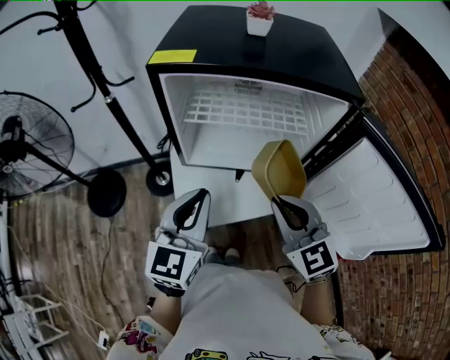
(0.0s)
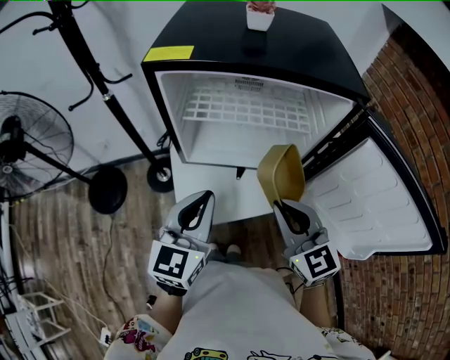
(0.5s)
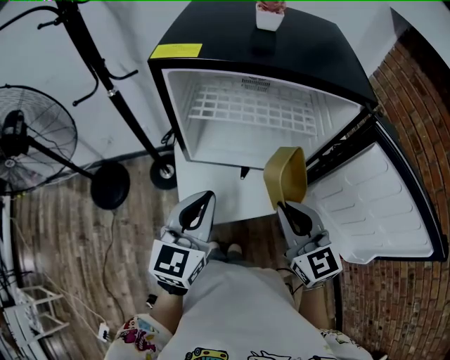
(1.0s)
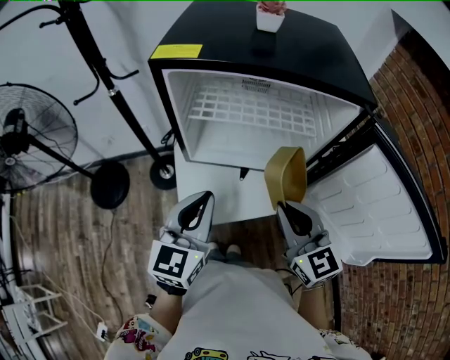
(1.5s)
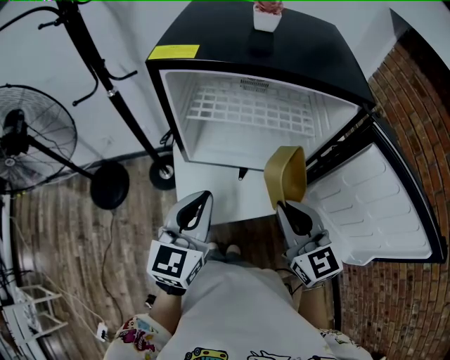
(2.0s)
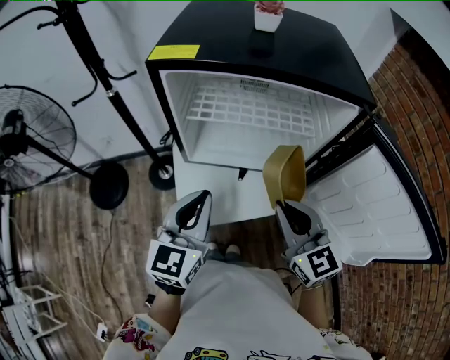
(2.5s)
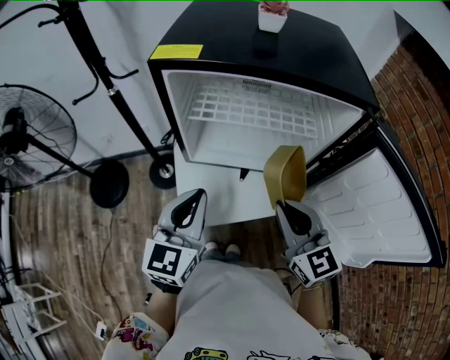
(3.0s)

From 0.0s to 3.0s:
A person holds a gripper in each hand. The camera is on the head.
From 0.0s to 3.0s: The grippers make only small movements.

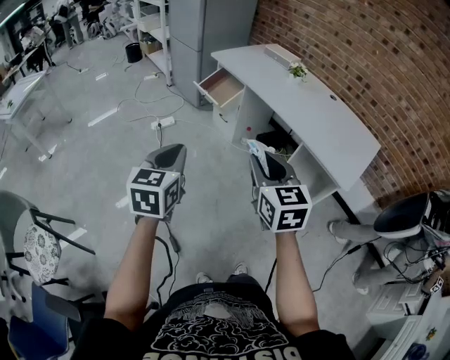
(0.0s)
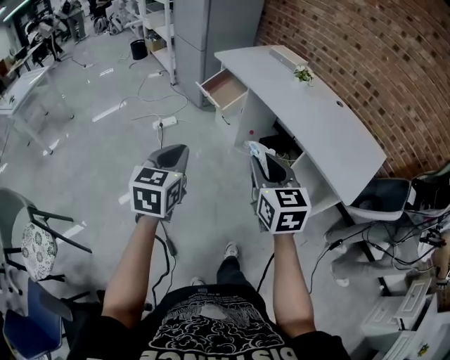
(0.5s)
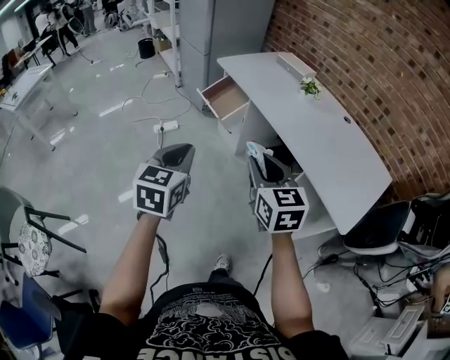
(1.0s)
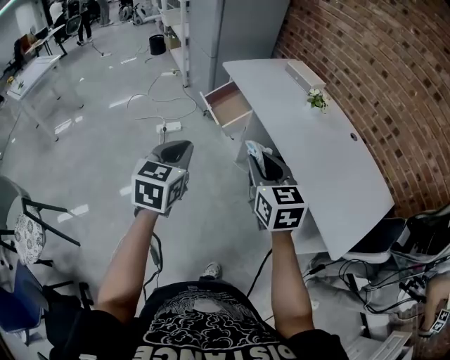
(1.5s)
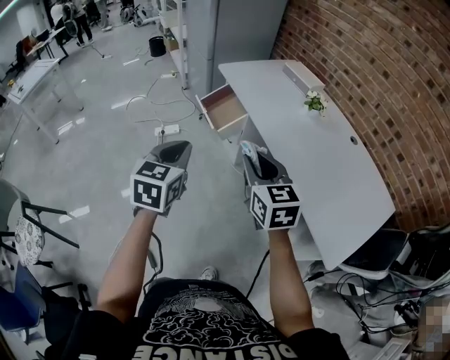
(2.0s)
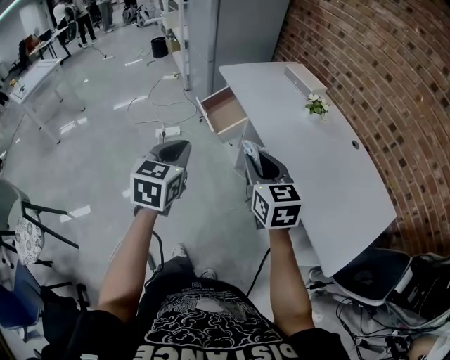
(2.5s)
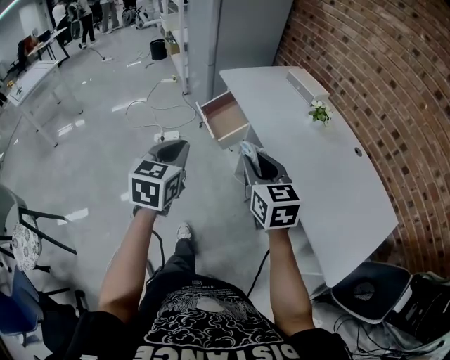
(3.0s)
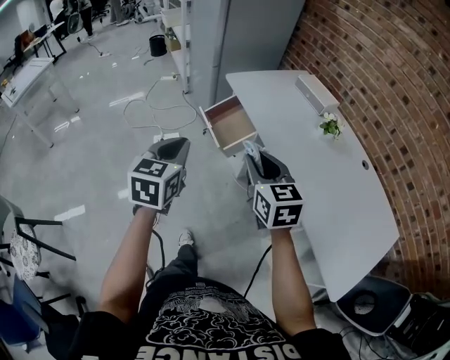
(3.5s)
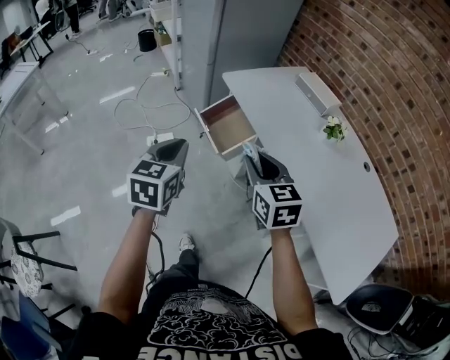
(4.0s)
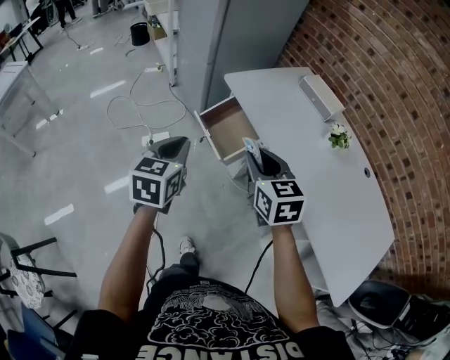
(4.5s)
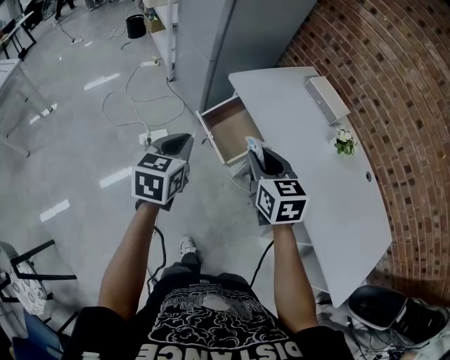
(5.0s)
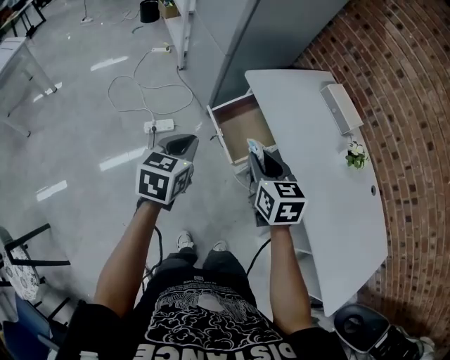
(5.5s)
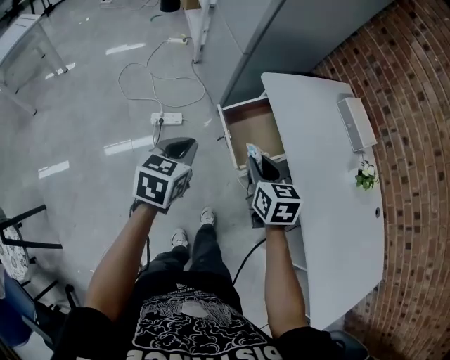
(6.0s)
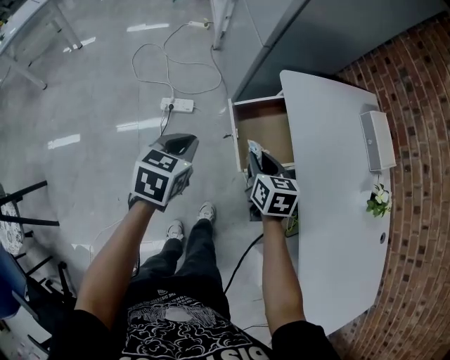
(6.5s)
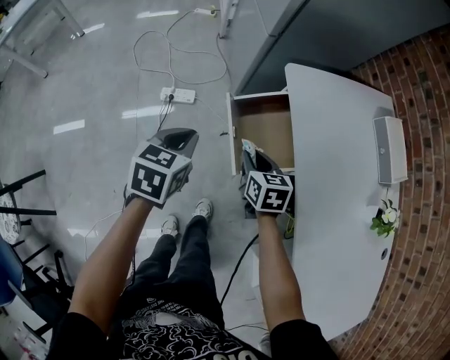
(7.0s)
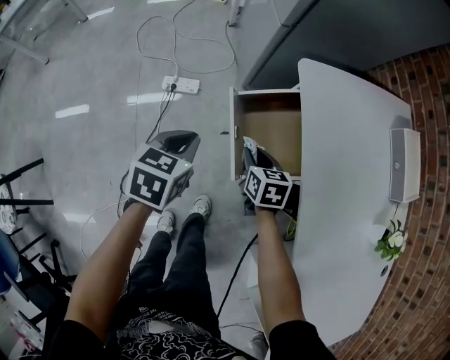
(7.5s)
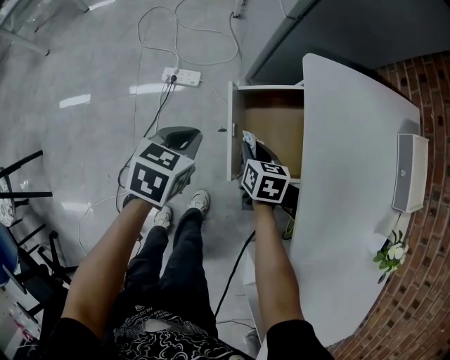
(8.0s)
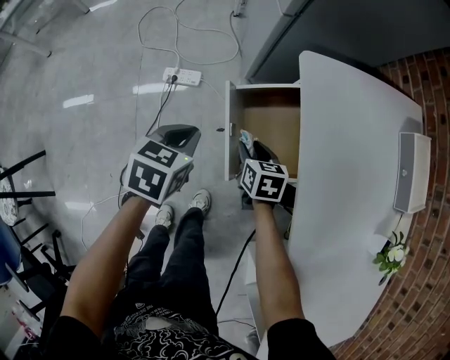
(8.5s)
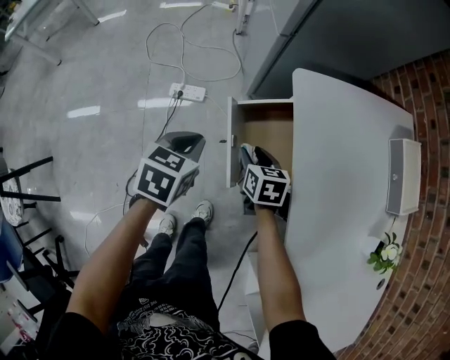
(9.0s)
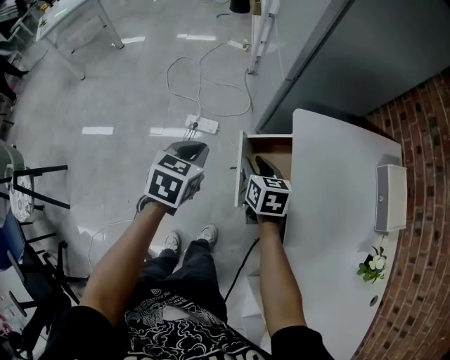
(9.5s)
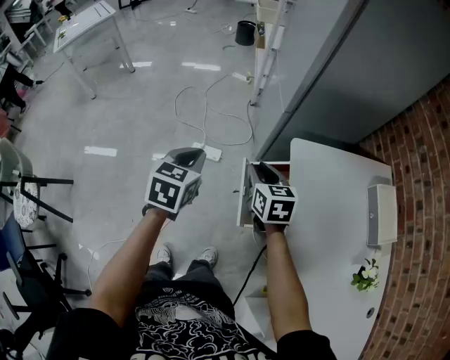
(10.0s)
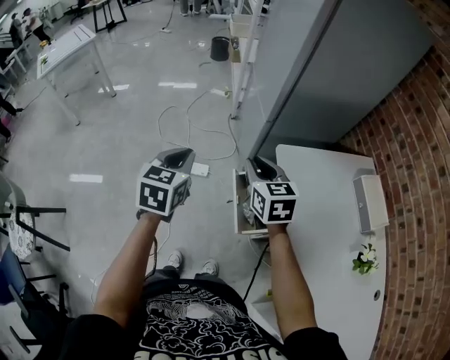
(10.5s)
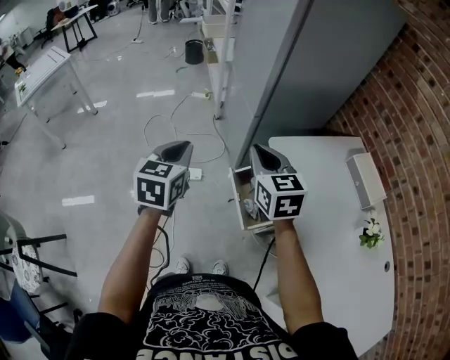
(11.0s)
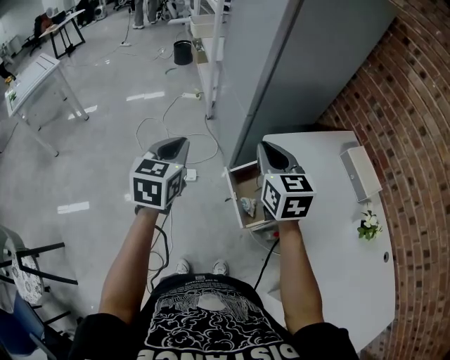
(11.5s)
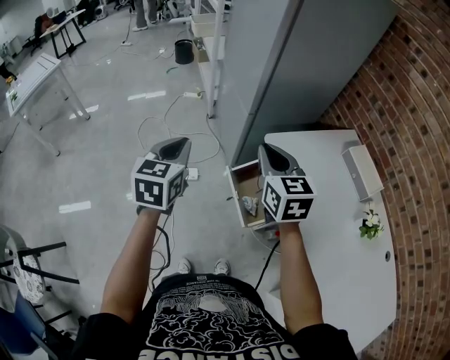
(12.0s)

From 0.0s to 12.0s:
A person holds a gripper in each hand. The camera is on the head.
From 0.0s to 2.0s: The two grippers go some 30 cm forward and to the right.
From 2.0s to 4.0s: Both grippers move forward, some 20 cm.
From 4.0s to 6.0s: The two grippers go some 20 cm forward, downward and to the left.
From 6.0s to 8.0s: The grippers both shift downward and forward by about 25 cm. The right gripper turns by approximately 20 degrees.
From 8.0s to 10.0s: The two grippers go roughly 25 cm upward. The right gripper rotates about 20 degrees, while the left gripper changes its angle by about 20 degrees.
From 10.0s to 12.0s: The left gripper shifts roughly 10 cm upward; the right gripper shifts about 15 cm upward, rotates some 20 degrees, and closes.

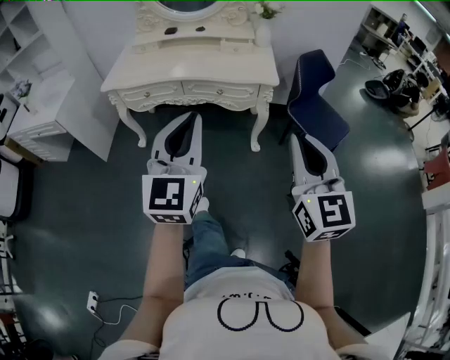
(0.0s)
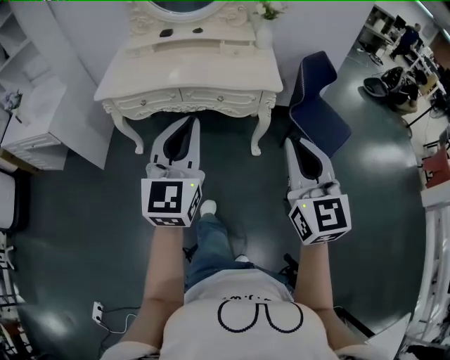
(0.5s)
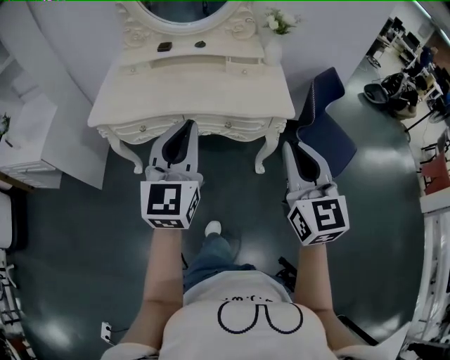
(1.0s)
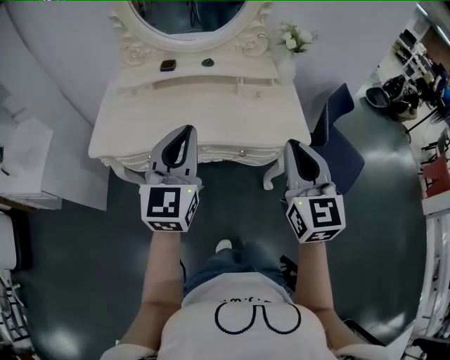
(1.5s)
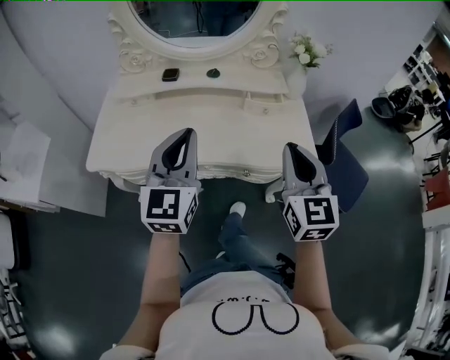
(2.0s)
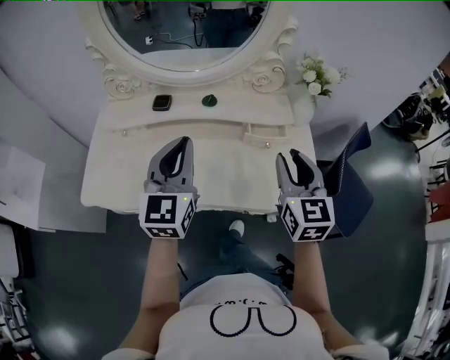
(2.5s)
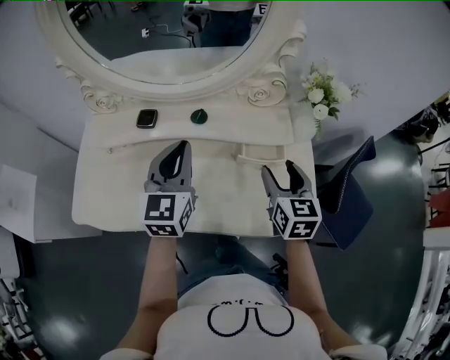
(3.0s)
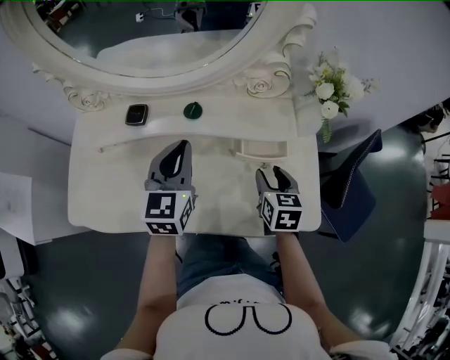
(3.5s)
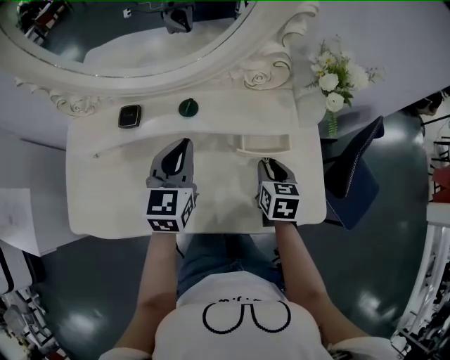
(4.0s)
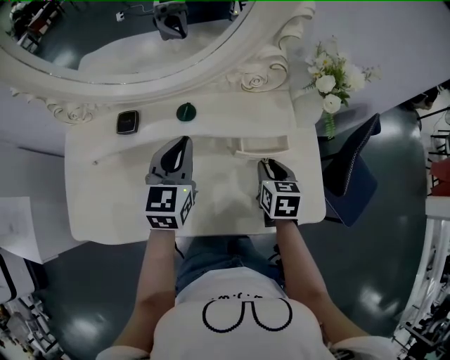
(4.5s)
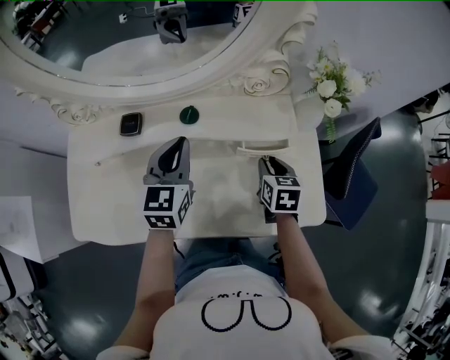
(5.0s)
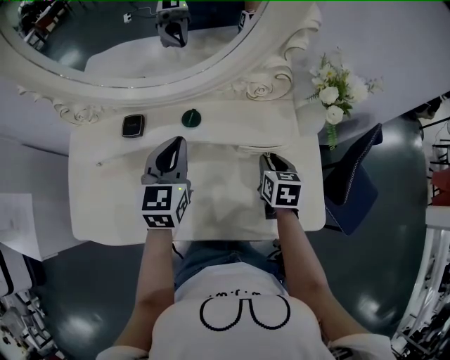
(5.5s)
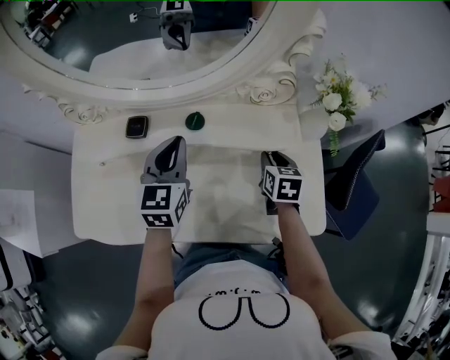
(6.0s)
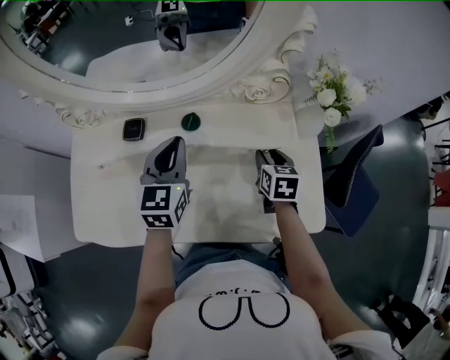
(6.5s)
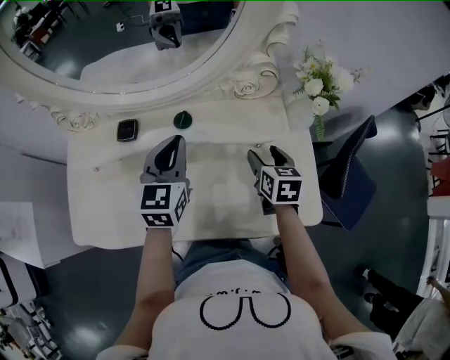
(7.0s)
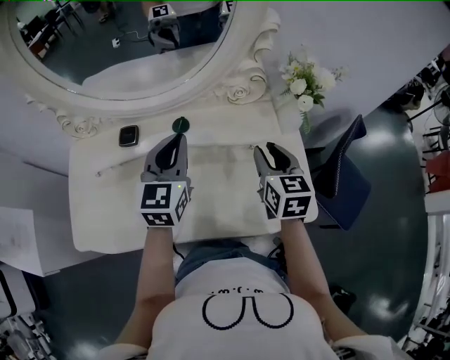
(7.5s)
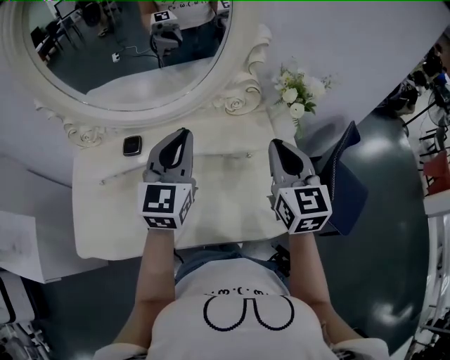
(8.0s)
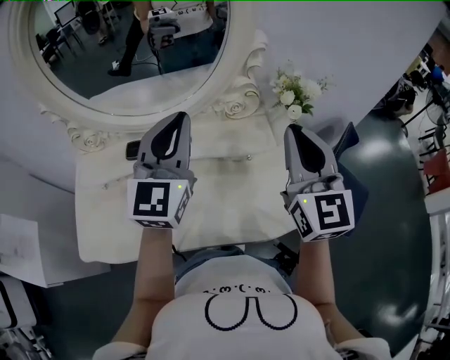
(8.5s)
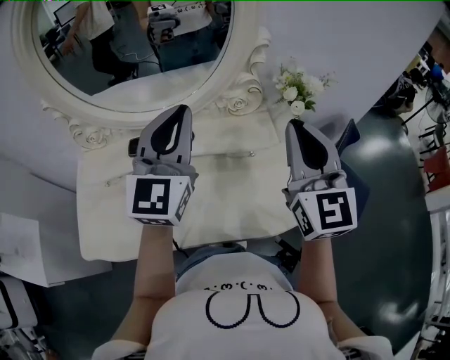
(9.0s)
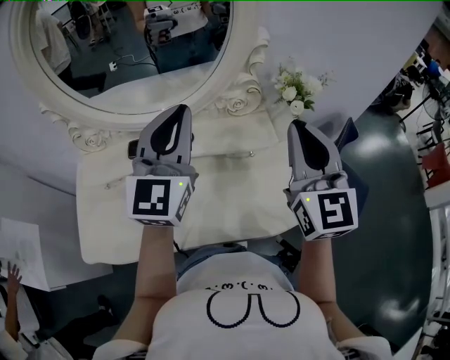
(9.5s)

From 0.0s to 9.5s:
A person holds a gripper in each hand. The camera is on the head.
From 0.0s to 2.0s: Both grippers are carried forward, roughly 50 cm.
From 2.0s to 4.0s: Both grippers travel together forward and downward, some 35 cm. The left gripper turns by about 20 degrees. The right gripper angles its fingers downward, by roughly 40 degrees, and opens its fingers.
From 4.0s to 5.5s: The grippers move only a little.
From 5.5s to 7.5s: The right gripper heads upward, covering roughly 15 cm, rotates about 20 degrees, and opens, then closes again; the left gripper shifts approximately 5 cm upward.
From 7.5s to 9.5s: The two grippers go approximately 20 cm upward. The right gripper changes its angle by about 30 degrees, and closes up. The left gripper swivels approximately 20 degrees.

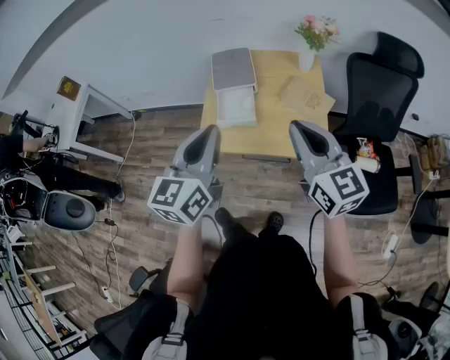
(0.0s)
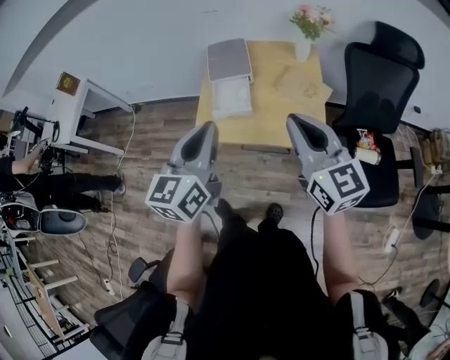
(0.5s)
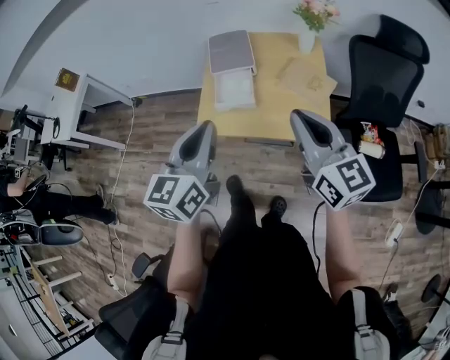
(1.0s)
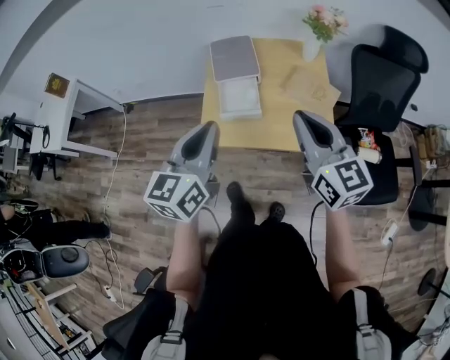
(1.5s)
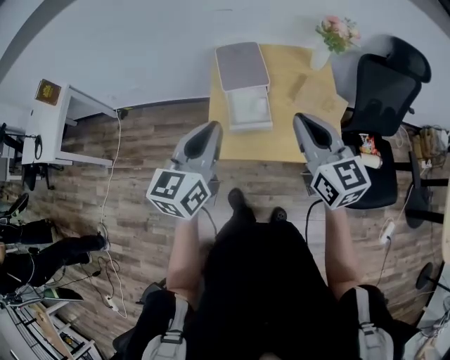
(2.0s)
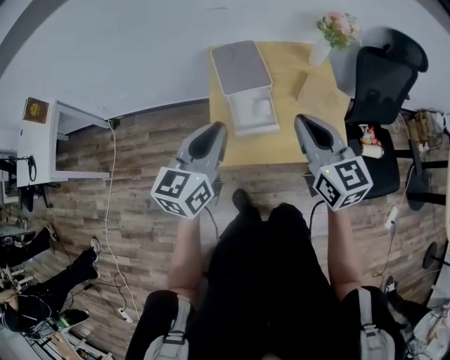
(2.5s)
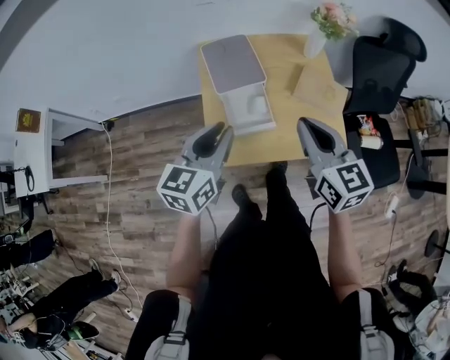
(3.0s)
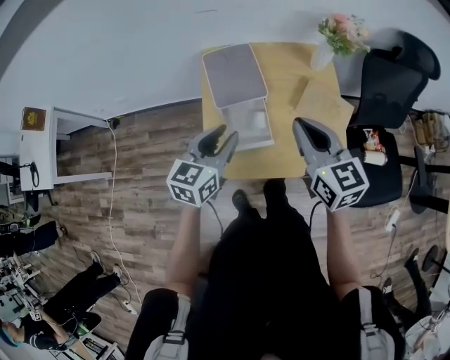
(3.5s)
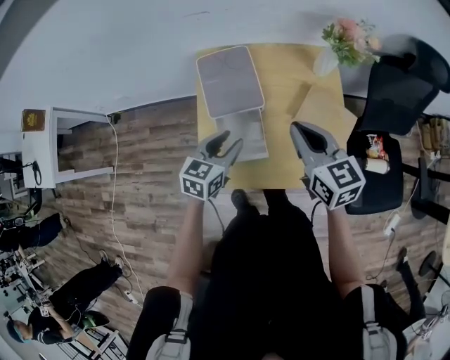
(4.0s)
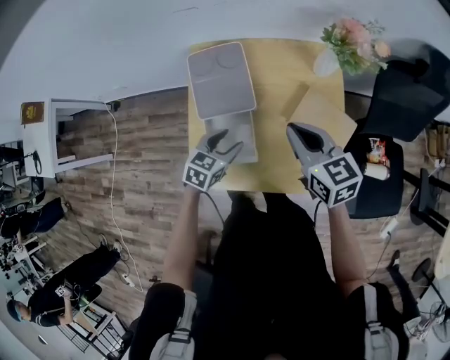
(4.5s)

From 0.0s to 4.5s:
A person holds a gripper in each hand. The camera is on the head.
From 0.0s to 2.0s: The left gripper heads forward, to the left and downward, covering roughly 15 cm; the right gripper shifts approximately 15 cm forward and to the left.
From 2.0s to 4.5s: The left gripper moves downward and forward, about 40 cm, angles its fingers downward, by about 40 degrees, and opens, while the right gripper moves forward and downward, about 30 cm, and rotates approximately 20 degrees.
